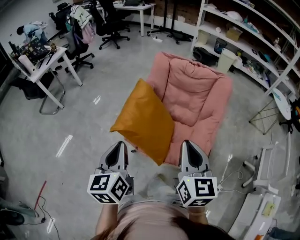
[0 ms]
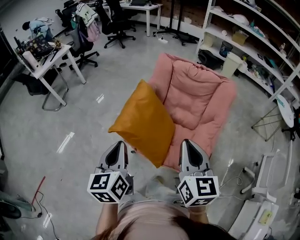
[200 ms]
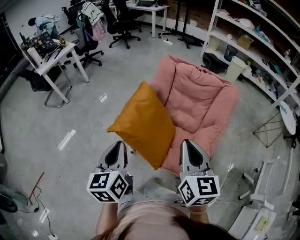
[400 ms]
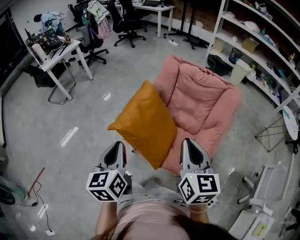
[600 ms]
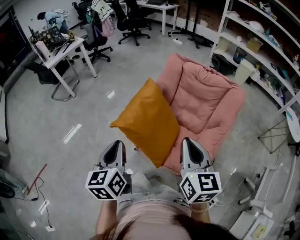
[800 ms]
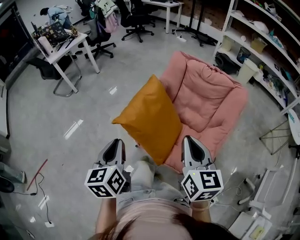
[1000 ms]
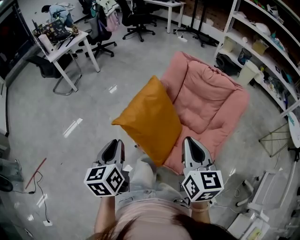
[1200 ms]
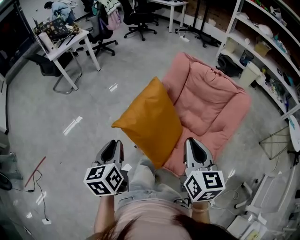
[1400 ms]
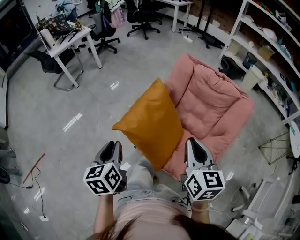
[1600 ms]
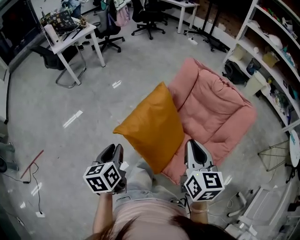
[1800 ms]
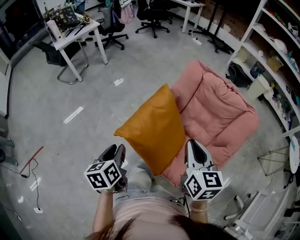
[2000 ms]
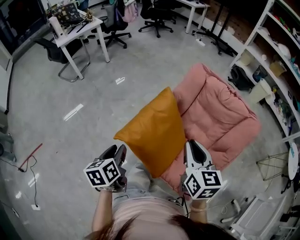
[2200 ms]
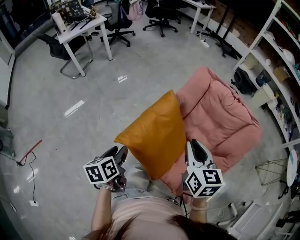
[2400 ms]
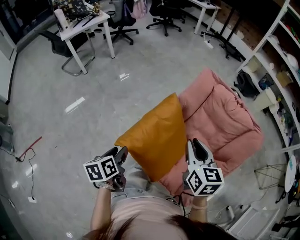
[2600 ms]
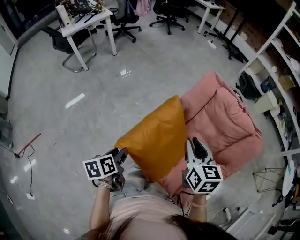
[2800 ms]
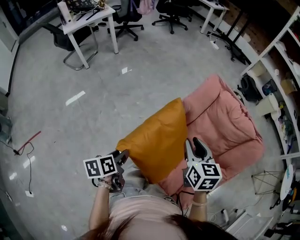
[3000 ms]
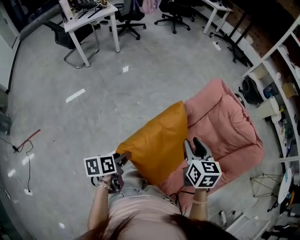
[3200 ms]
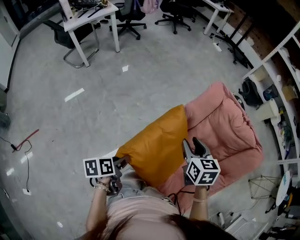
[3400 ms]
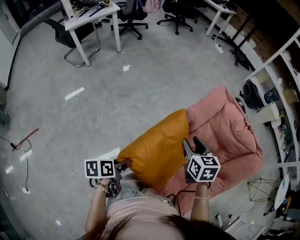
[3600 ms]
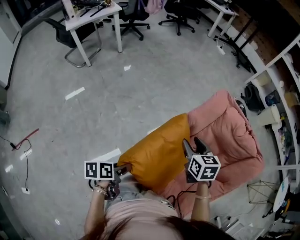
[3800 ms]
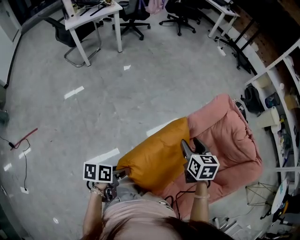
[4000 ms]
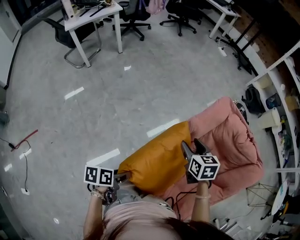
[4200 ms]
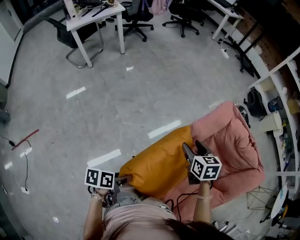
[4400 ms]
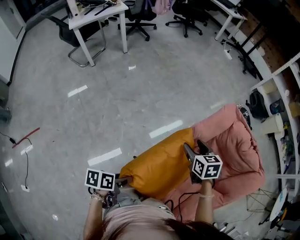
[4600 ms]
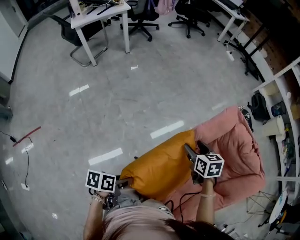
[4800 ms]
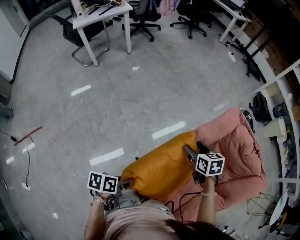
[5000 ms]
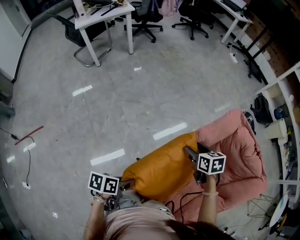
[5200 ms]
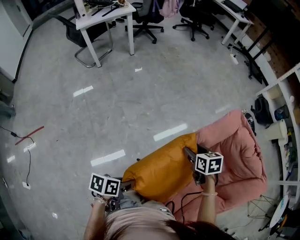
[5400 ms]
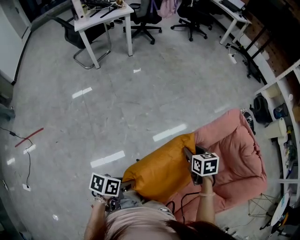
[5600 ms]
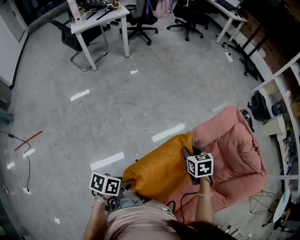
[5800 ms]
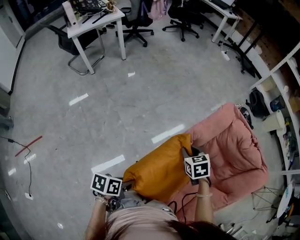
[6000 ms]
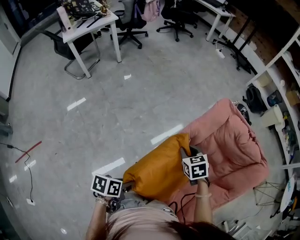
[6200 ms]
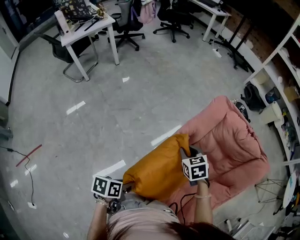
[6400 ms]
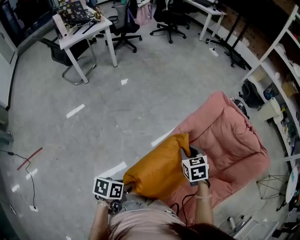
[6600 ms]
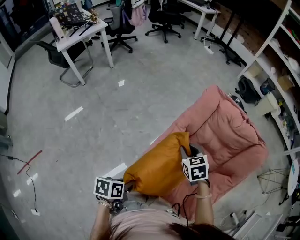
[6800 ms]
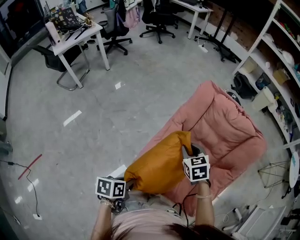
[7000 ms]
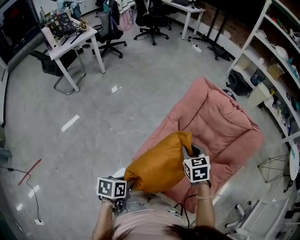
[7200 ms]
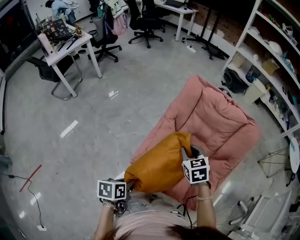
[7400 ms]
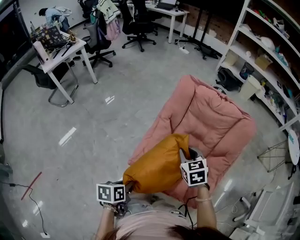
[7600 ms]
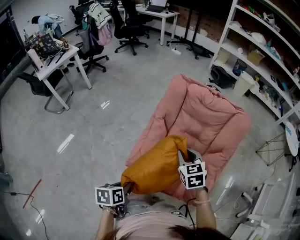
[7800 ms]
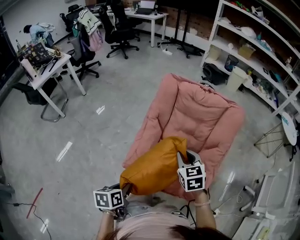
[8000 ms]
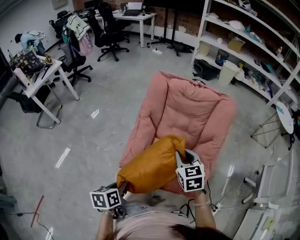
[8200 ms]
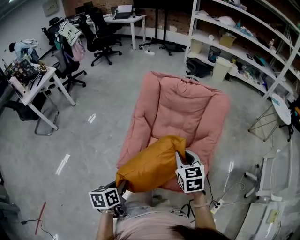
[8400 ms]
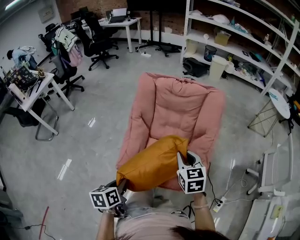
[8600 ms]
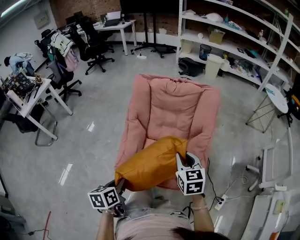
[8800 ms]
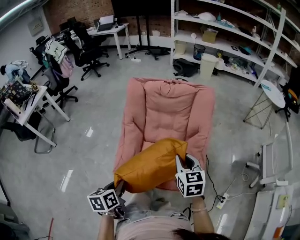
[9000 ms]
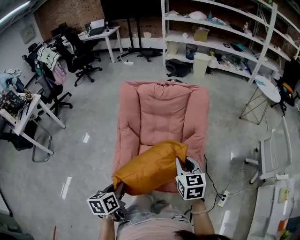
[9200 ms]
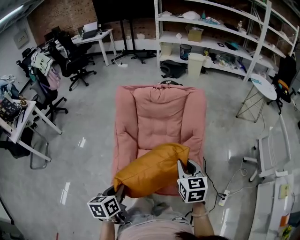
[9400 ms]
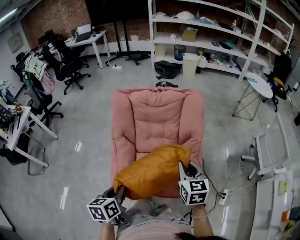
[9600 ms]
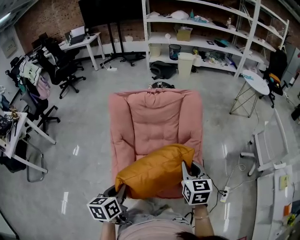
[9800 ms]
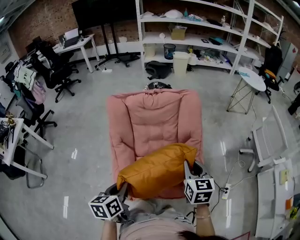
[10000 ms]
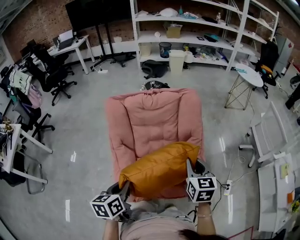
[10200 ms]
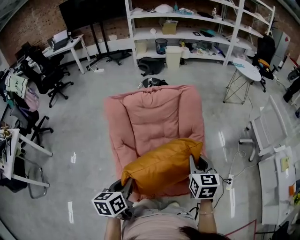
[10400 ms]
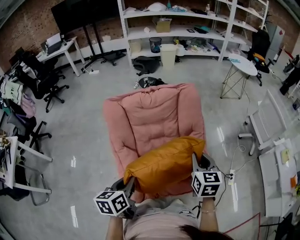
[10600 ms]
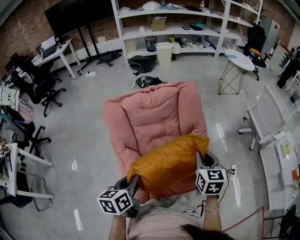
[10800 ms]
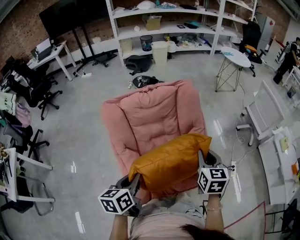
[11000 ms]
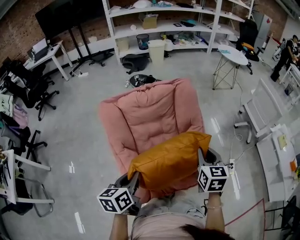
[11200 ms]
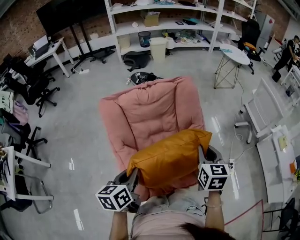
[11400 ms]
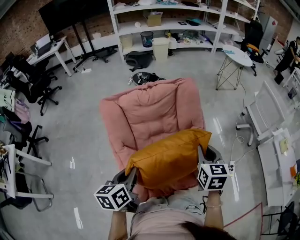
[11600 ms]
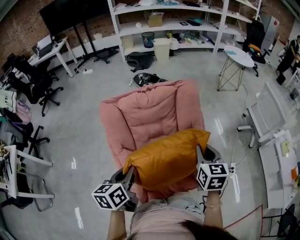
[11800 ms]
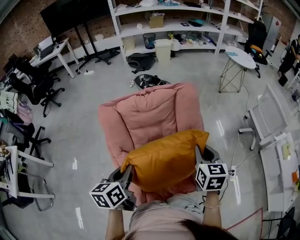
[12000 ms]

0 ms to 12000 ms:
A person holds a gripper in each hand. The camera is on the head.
0 ms to 1600 ms: The right gripper is displaced forward by roughly 10 cm. Meanwhile the left gripper heads downward, covering some 5 cm, and changes its angle by approximately 20 degrees.
1600 ms to 3000 ms: The right gripper shifts approximately 20 cm forward. The left gripper travels downward and forward by approximately 15 cm, rotates some 40 degrees, and opens its fingers.
3000 ms to 4400 ms: The left gripper moves downward, about 5 cm, and rotates approximately 20 degrees. Meanwhile the right gripper moves forward, downward and to the left, about 20 cm, and opens.
4400 ms to 6000 ms: The right gripper ends up about 5 cm from where it was, and closes its fingers; the left gripper closes up.
6000 ms to 7600 ms: The right gripper goes some 20 cm to the right, backward and upward, and swivels some 20 degrees. The left gripper is displaced backward and to the right by approximately 10 cm.
7600 ms to 9000 ms: The right gripper heads to the right and backward, covering some 20 cm, and turns by some 30 degrees; the left gripper heads to the right and upward, covering about 10 cm.
9000 ms to 10400 ms: The left gripper changes place by roughly 20 cm, and rotates about 20 degrees, while the right gripper shifts by approximately 5 cm, and rotates approximately 30 degrees.
10400 ms to 12000 ms: The right gripper moves forward, approximately 5 cm. Meanwhile the left gripper goes approximately 10 cm forward.

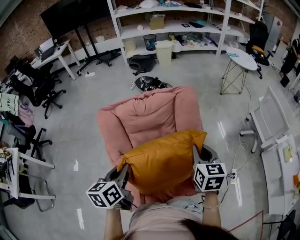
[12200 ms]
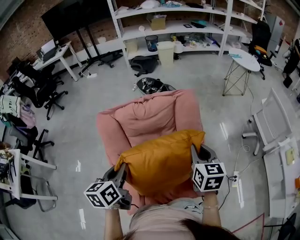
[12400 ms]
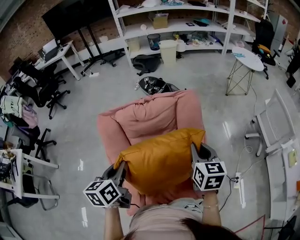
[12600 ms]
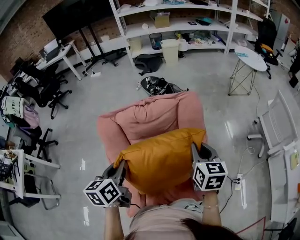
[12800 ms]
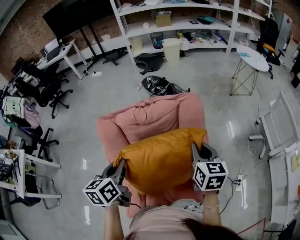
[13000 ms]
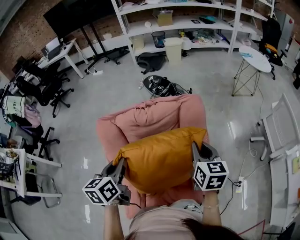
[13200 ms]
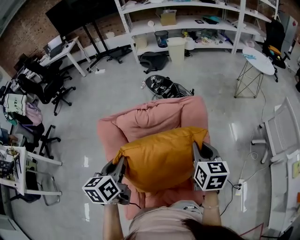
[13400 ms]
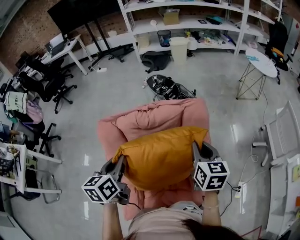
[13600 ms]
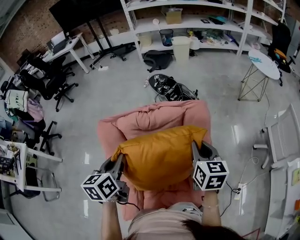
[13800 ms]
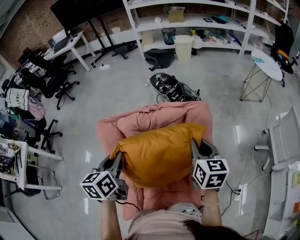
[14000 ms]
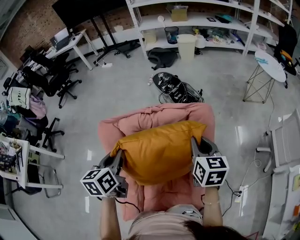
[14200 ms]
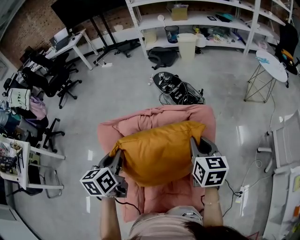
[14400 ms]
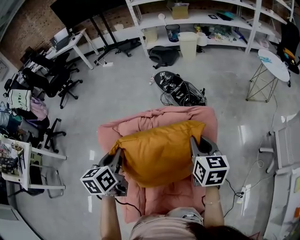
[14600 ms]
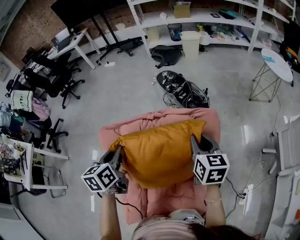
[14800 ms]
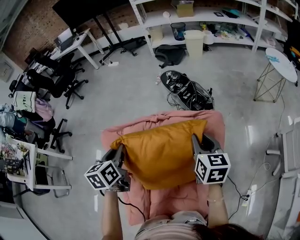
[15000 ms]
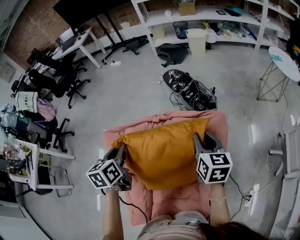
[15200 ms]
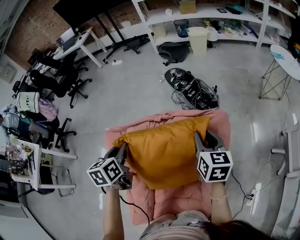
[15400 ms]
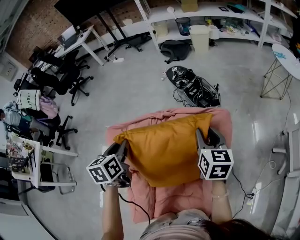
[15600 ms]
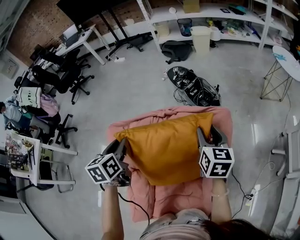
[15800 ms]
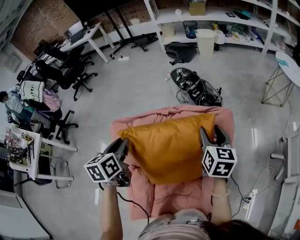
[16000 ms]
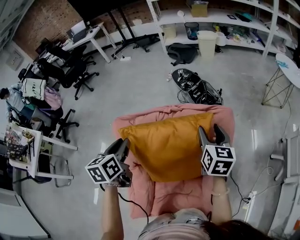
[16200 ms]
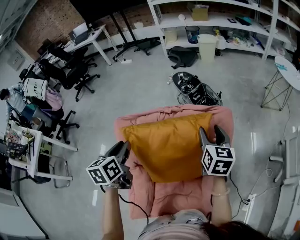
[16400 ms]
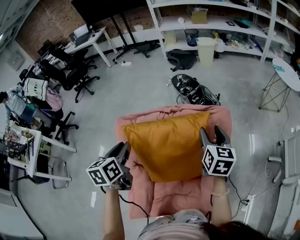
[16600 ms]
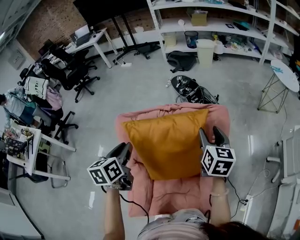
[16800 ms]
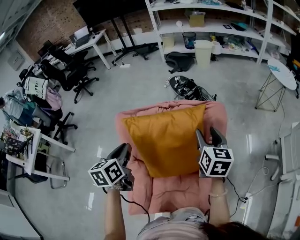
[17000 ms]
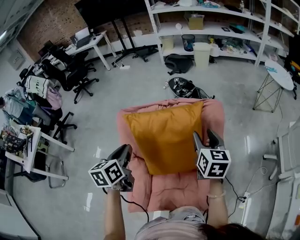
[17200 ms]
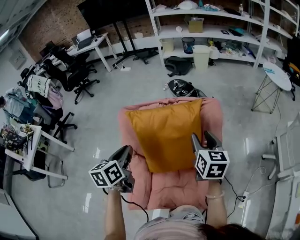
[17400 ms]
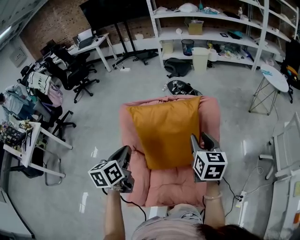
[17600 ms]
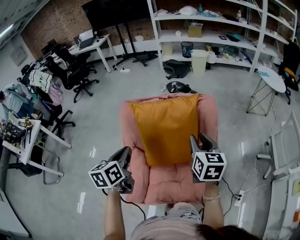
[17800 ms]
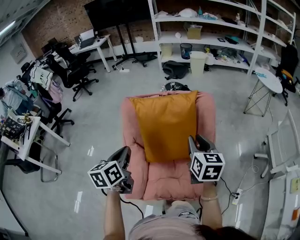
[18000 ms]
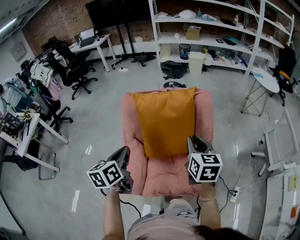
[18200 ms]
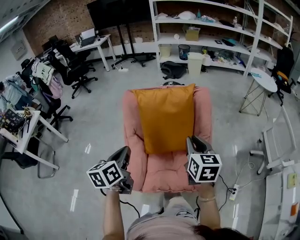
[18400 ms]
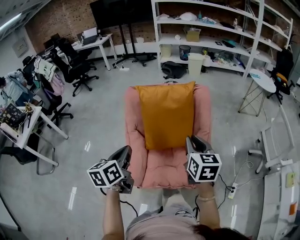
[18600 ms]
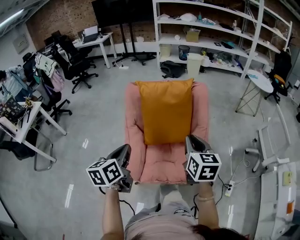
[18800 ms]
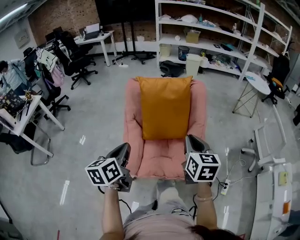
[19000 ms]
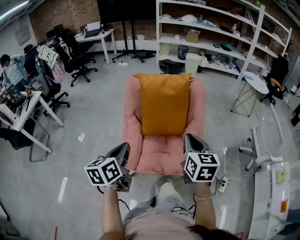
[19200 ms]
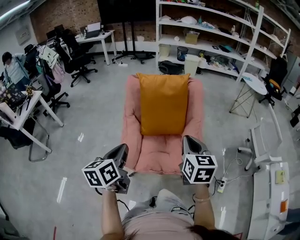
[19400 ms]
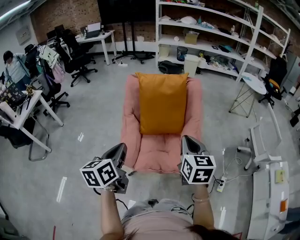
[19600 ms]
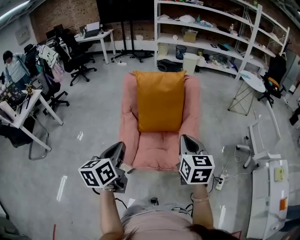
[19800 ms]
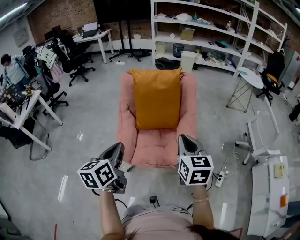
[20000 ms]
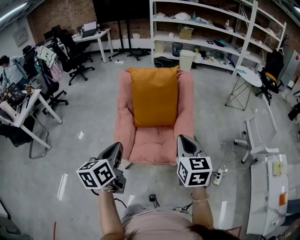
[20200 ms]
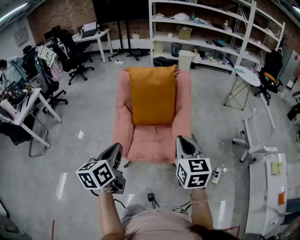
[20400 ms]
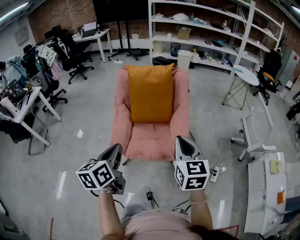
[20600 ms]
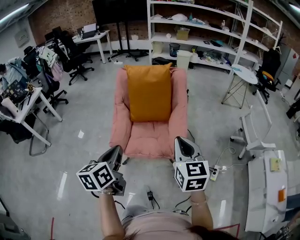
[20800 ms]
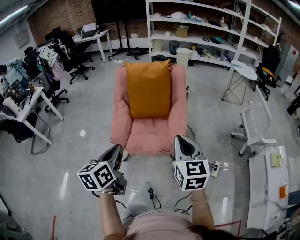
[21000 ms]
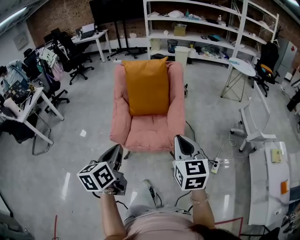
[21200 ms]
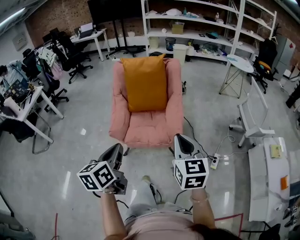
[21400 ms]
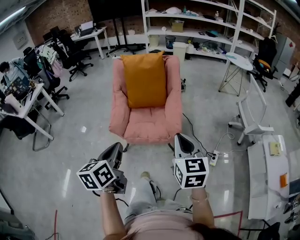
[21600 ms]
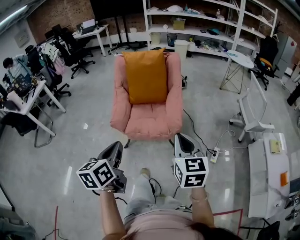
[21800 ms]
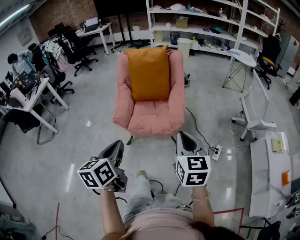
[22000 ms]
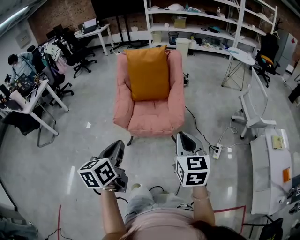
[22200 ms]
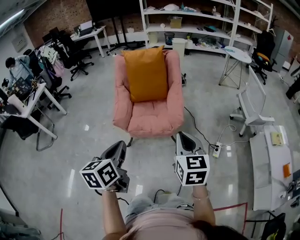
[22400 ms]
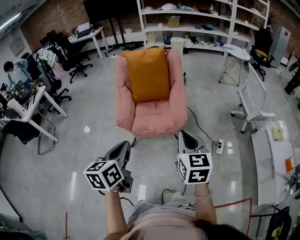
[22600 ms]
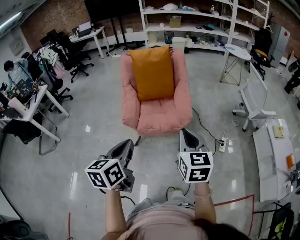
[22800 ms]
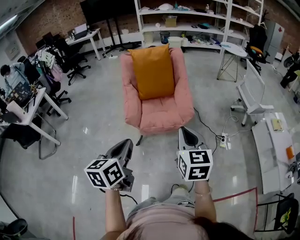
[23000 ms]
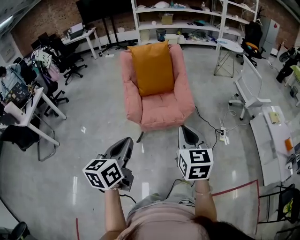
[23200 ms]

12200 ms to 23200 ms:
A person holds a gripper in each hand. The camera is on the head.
12200 ms to 13800 ms: The grippers both shift forward by roughly 15 cm.
13800 ms to 15400 ms: Both grippers travel together forward, roughly 15 cm.
15400 ms to 17000 ms: The two grippers go roughly 10 cm backward. The right gripper opens up.
17000 ms to 18400 ms: The two grippers go about 25 cm backward. The right gripper closes up.
18400 ms to 20000 ms: The two grippers go roughly 25 cm backward.
20000 ms to 21600 ms: The right gripper travels backward by roughly 25 cm. Meanwhile the left gripper travels backward and to the right by roughly 25 cm.
21600 ms to 23200 ms: The grippers both shift to the left and backward by roughly 20 cm.

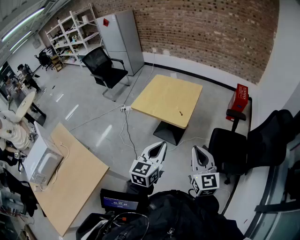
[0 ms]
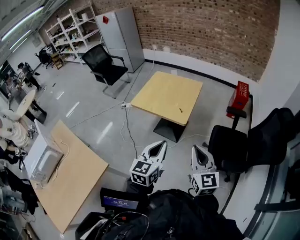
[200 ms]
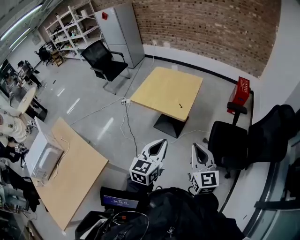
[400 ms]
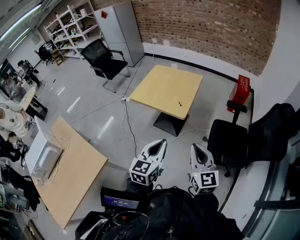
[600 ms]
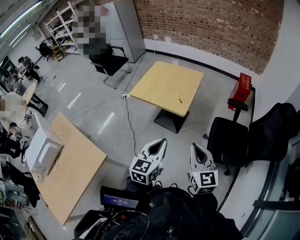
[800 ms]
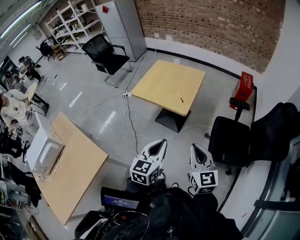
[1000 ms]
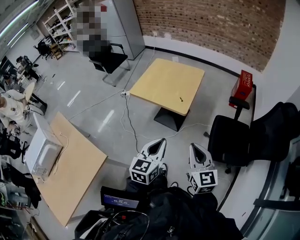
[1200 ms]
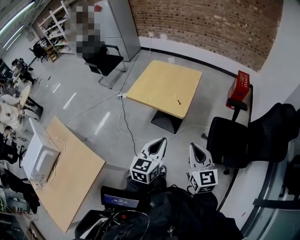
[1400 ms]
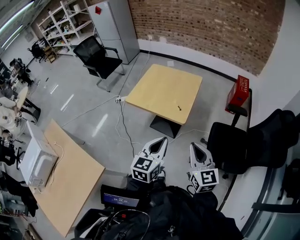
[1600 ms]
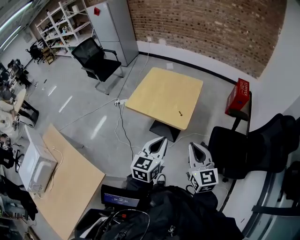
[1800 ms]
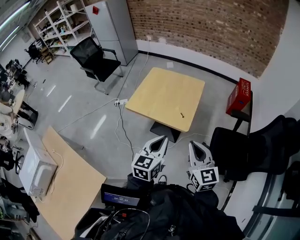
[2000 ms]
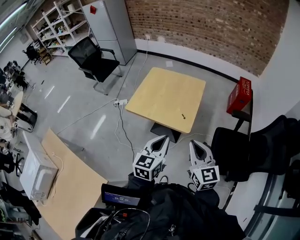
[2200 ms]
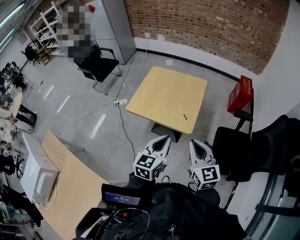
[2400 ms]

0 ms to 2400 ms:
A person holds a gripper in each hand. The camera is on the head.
0 ms to 1200 ms: The right gripper moves downward, roughly 5 cm.
1200 ms to 2400 ms: The right gripper is displaced forward and to the left by some 20 cm, while the left gripper heads forward, covering roughly 20 cm.
